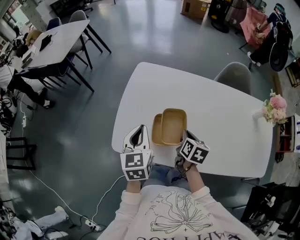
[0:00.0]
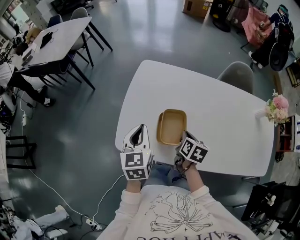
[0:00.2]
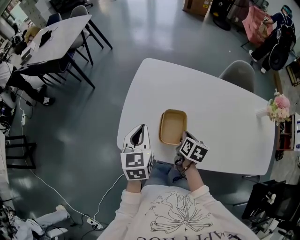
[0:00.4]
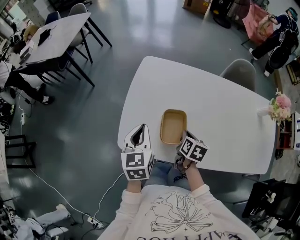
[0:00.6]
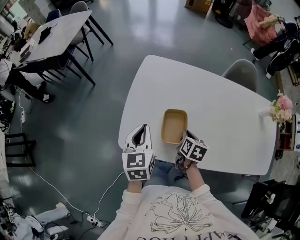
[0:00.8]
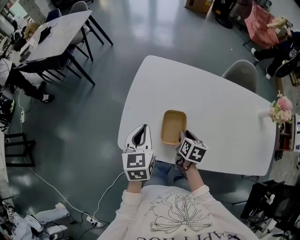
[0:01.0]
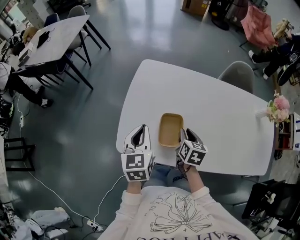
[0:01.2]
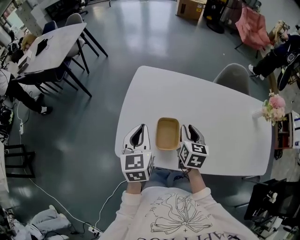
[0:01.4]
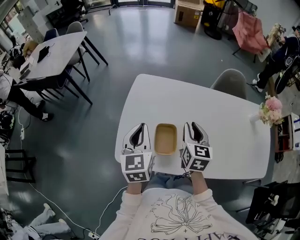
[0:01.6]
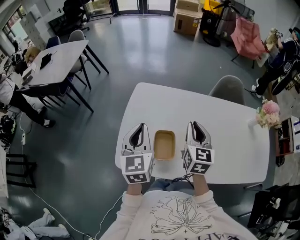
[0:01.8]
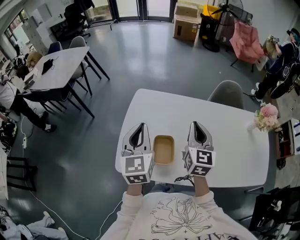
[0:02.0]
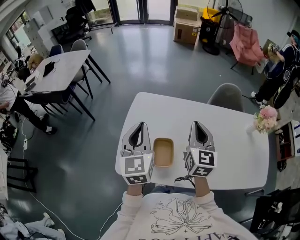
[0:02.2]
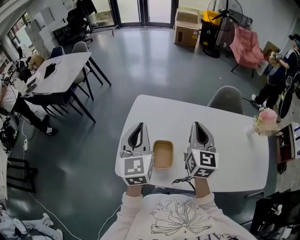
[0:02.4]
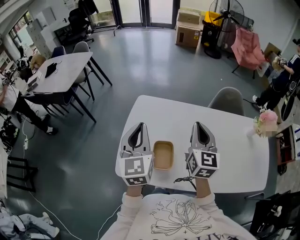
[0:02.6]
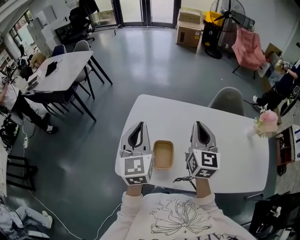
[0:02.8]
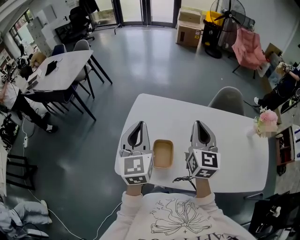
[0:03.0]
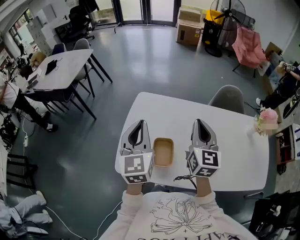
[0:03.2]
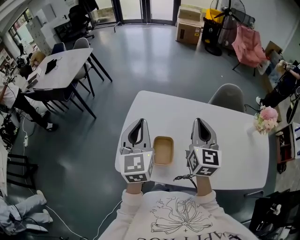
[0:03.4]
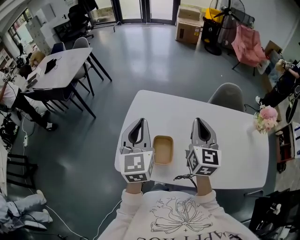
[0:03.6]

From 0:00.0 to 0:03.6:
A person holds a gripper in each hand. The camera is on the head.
From 0:00.0 to 0:01.8: The left gripper goes approximately 10 cm upward and forward. Meanwhile the right gripper shifts approximately 15 cm upward, and swivels about 40 degrees.
From 0:01.8 to 0:03.6: The grippers both shift upward by some 5 cm.

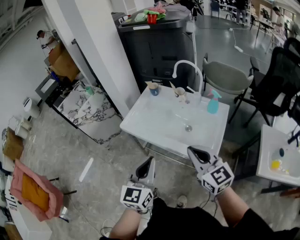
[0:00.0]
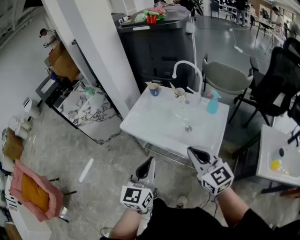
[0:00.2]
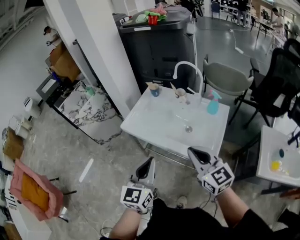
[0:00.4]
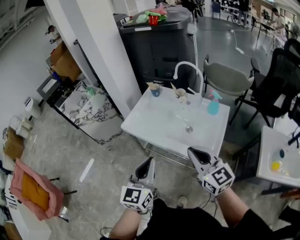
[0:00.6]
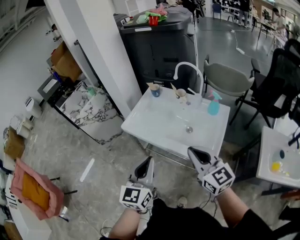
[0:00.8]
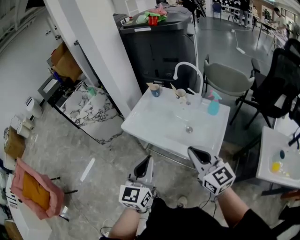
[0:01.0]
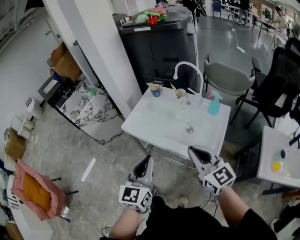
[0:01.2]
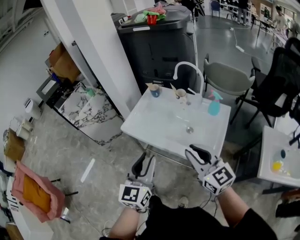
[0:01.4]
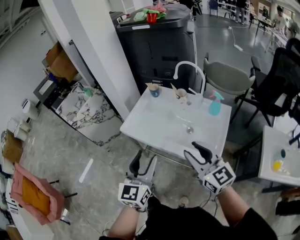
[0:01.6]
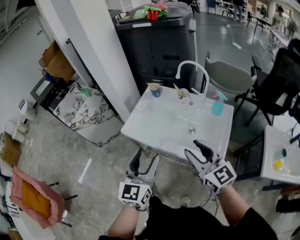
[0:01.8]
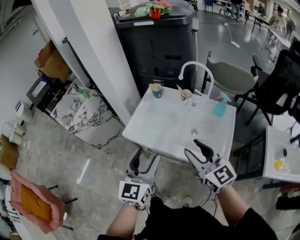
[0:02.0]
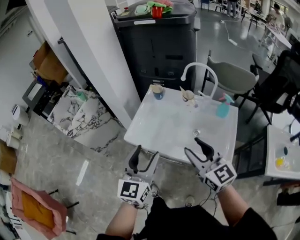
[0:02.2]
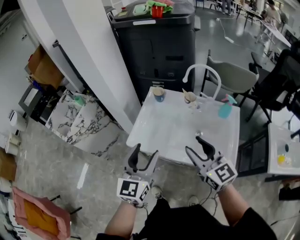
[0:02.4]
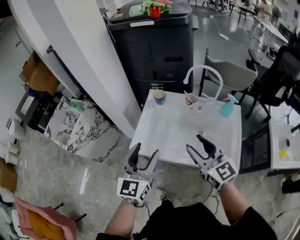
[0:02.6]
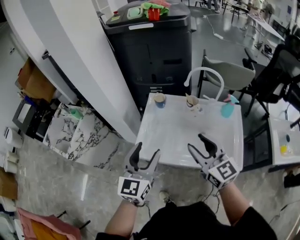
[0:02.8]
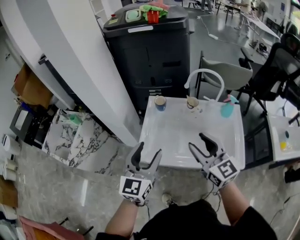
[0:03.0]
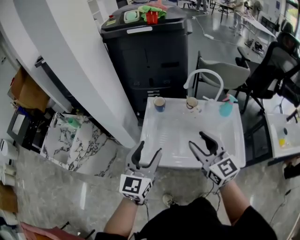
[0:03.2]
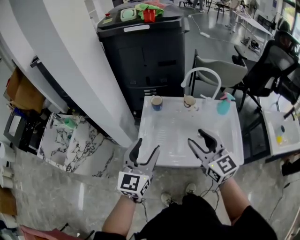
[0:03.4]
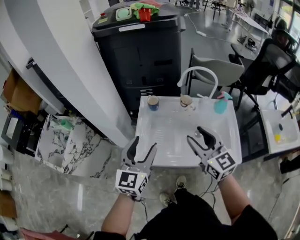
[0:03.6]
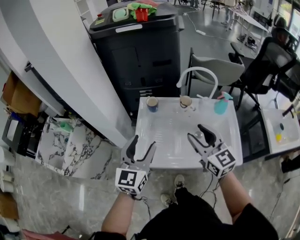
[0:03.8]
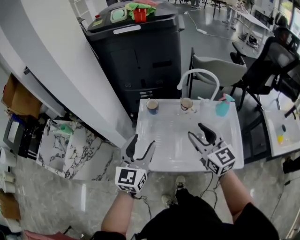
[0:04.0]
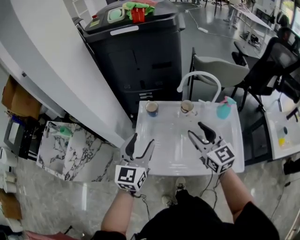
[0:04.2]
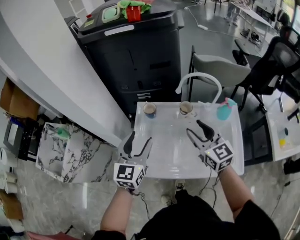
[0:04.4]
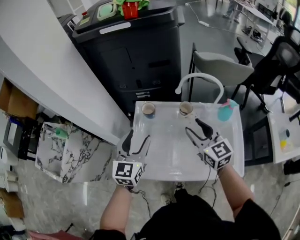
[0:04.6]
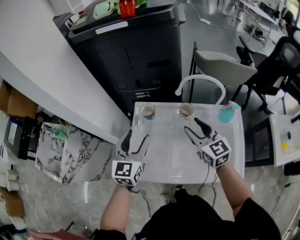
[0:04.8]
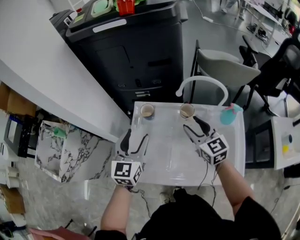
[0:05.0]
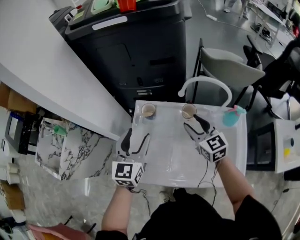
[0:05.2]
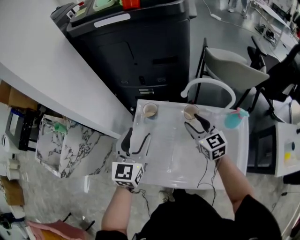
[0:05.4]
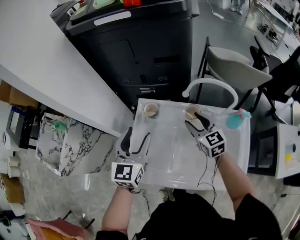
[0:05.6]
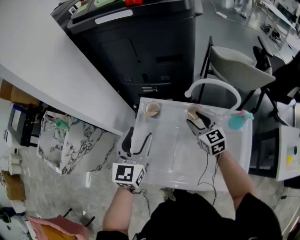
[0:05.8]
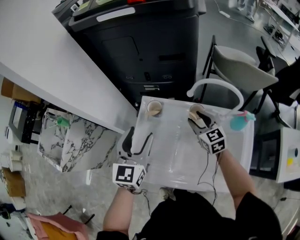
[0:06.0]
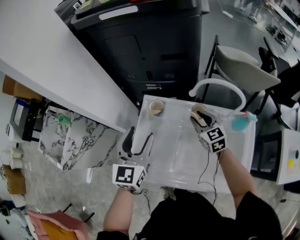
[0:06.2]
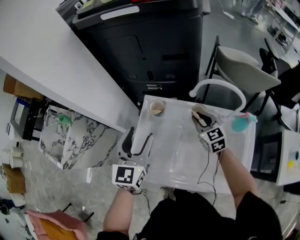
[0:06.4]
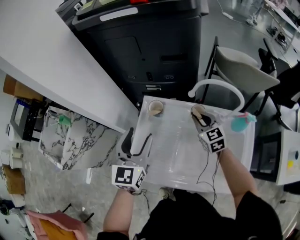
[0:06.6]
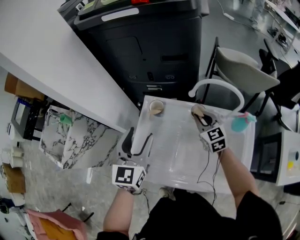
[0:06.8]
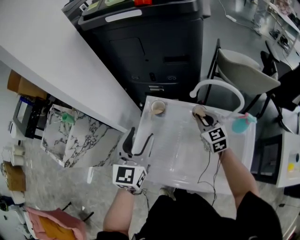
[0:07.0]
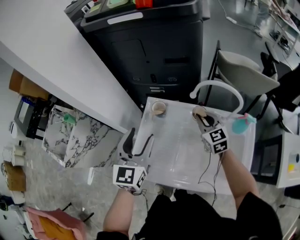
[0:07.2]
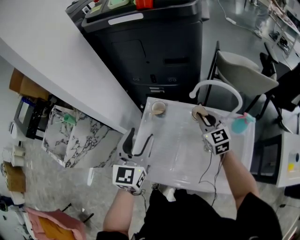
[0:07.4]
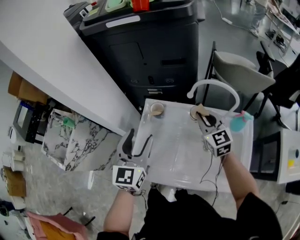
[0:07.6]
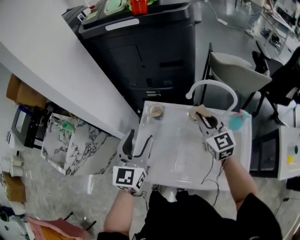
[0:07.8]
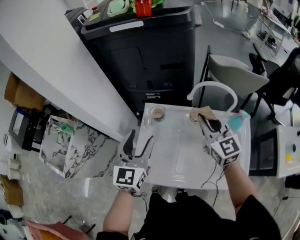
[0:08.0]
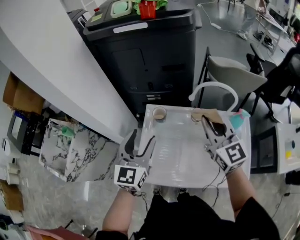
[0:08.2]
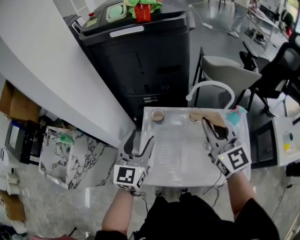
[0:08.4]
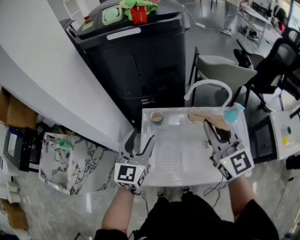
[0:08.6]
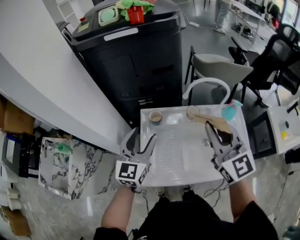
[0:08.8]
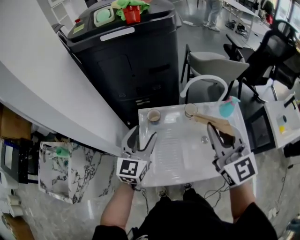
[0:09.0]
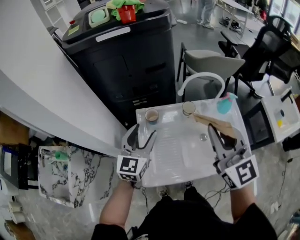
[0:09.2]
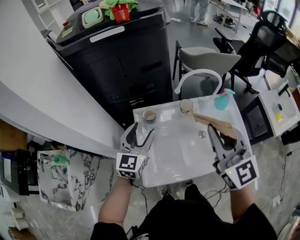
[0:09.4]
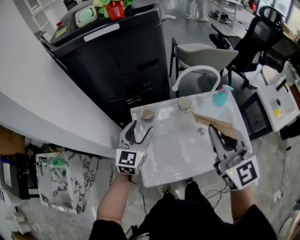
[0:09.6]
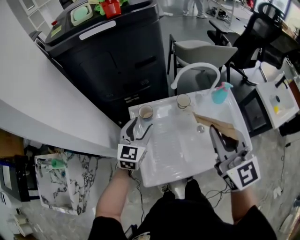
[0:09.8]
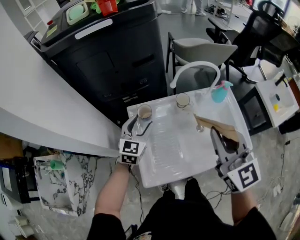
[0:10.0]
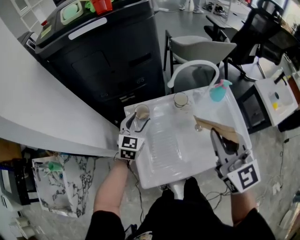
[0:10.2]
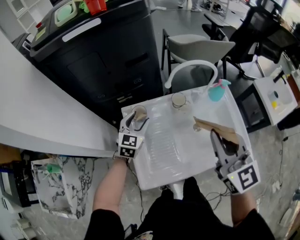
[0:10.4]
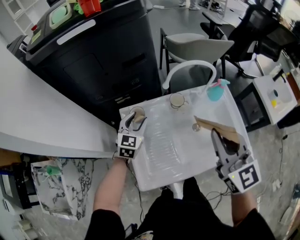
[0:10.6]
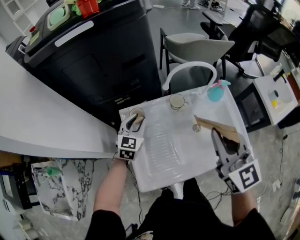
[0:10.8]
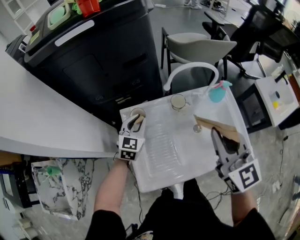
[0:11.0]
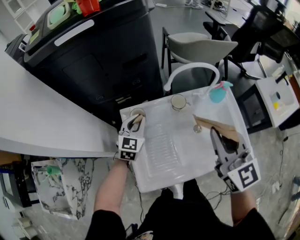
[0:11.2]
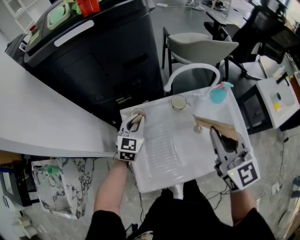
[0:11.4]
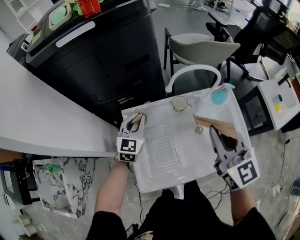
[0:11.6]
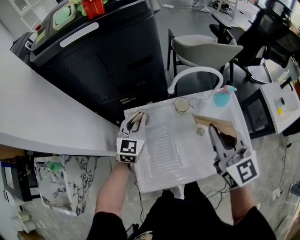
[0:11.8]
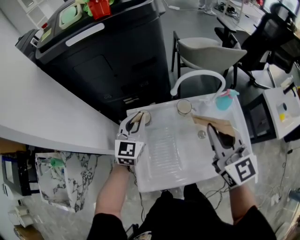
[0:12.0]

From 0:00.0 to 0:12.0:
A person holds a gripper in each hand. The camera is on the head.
From 0:00.0 to 0:01.6: The right gripper opens up. The left gripper shifts by approximately 5 cm, and opens up.
From 0:01.6 to 0:03.0: Both grippers travel together forward and to the left, about 25 cm. The right gripper turns by some 20 degrees; the left gripper changes its angle by some 20 degrees.
From 0:03.0 to 0:04.4: The grippers both shift forward by some 15 cm.
From 0:04.4 to 0:06.0: The left gripper heads forward, covering about 10 cm, while the right gripper heads forward and downward, covering approximately 20 cm.
From 0:06.0 to 0:07.6: The right gripper moves upward, some 10 cm, and closes.
From 0:07.6 to 0:09.0: The left gripper swivels approximately 20 degrees, while the right gripper is displaced upward and backward by approximately 25 cm, and changes its angle by approximately 20 degrees.
From 0:09.0 to 0:10.4: The right gripper shifts by approximately 5 cm, while the left gripper heads downward and forward, covering approximately 20 cm, and changes its angle by approximately 20 degrees.
From 0:10.4 to 0:12.0: The right gripper heads forward, covering roughly 5 cm; the left gripper heads upward, covering approximately 10 cm, and closes up.

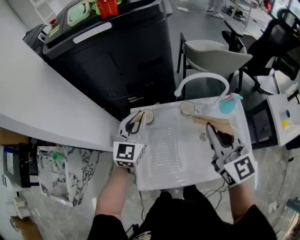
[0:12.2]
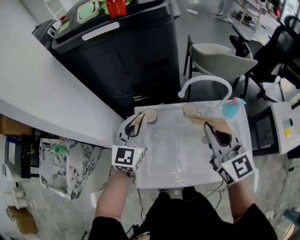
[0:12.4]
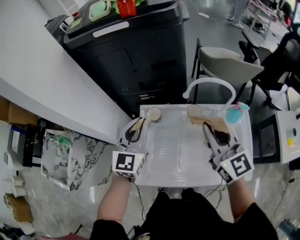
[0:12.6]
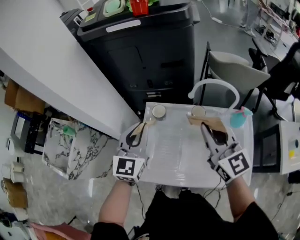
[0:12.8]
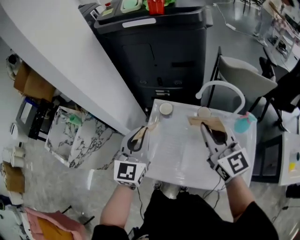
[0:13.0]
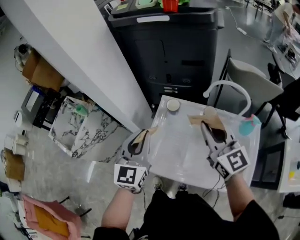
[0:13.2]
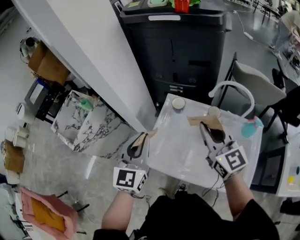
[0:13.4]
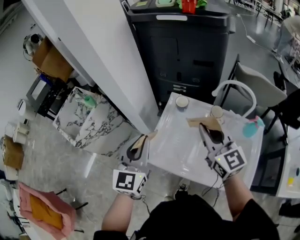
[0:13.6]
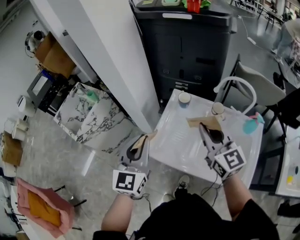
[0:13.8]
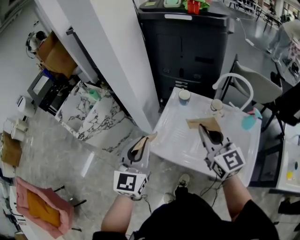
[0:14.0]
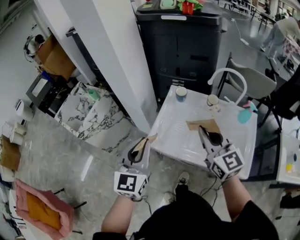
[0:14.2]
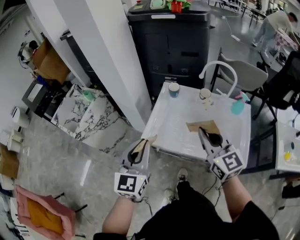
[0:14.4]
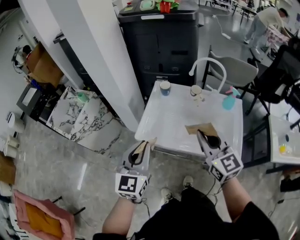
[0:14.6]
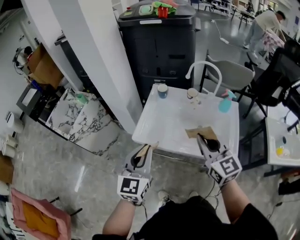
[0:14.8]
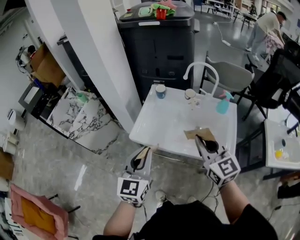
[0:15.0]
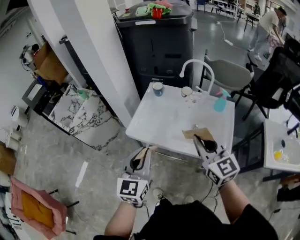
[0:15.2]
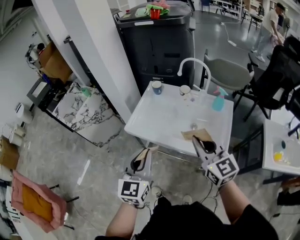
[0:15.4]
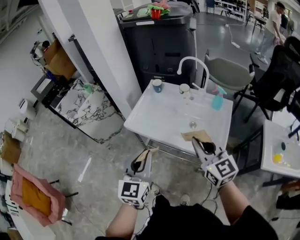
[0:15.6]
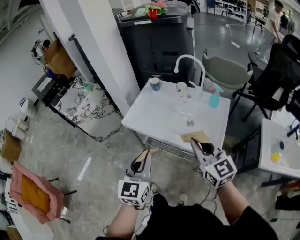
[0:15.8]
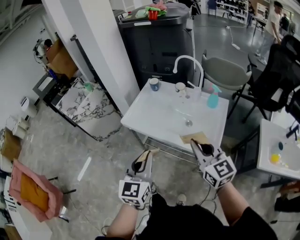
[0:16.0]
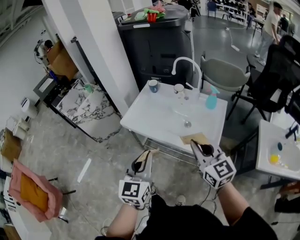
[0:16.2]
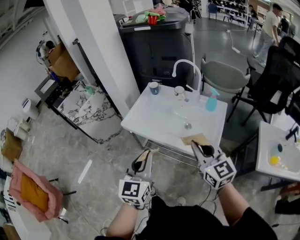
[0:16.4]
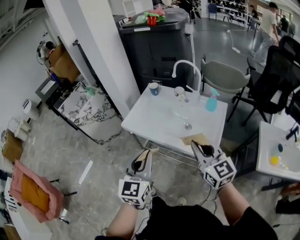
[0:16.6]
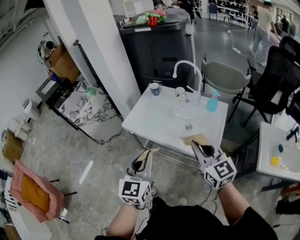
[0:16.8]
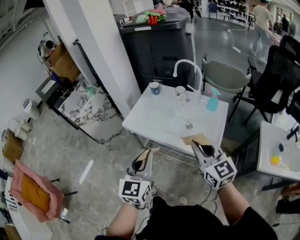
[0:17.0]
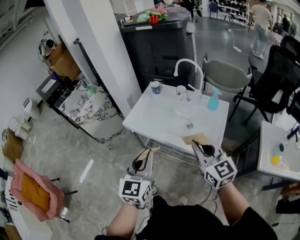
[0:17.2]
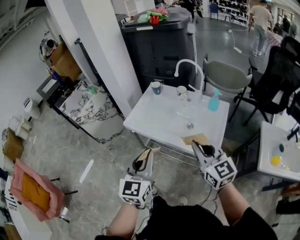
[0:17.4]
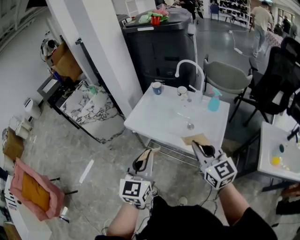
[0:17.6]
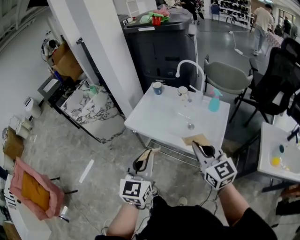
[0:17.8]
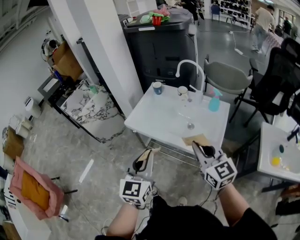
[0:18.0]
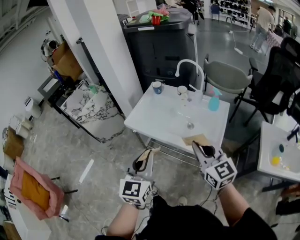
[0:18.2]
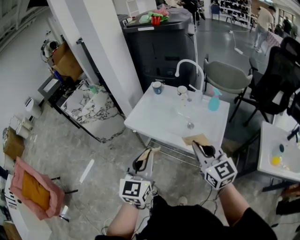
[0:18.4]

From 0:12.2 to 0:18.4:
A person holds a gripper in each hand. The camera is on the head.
From 0:12.2 to 0:13.8: The left gripper ends up about 30 cm from where it was, and turns by roughly 30 degrees. Meanwhile the right gripper changes place by roughly 15 cm, and turns by roughly 30 degrees.
From 0:13.8 to 0:15.4: Both grippers travel together backward and to the right, approximately 30 cm.
From 0:15.4 to 0:16.8: The two grippers go some 10 cm backward and to the right.
From 0:16.8 to 0:18.4: The grippers stay close to where they were, moving slightly.

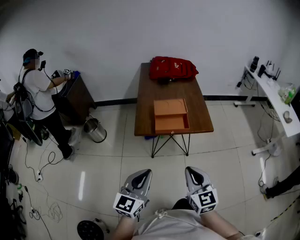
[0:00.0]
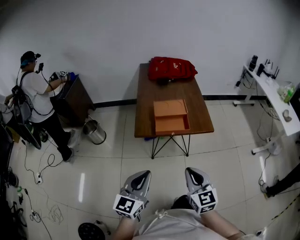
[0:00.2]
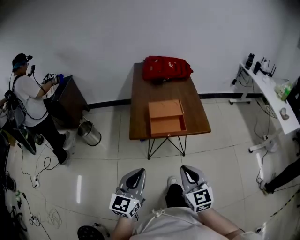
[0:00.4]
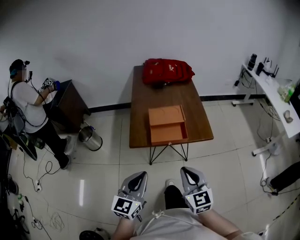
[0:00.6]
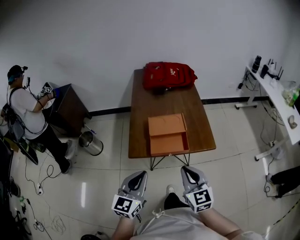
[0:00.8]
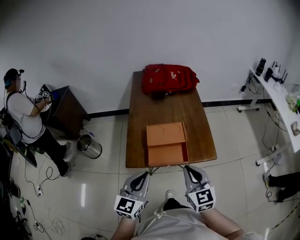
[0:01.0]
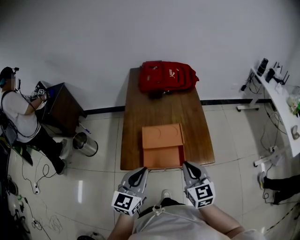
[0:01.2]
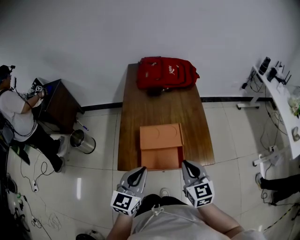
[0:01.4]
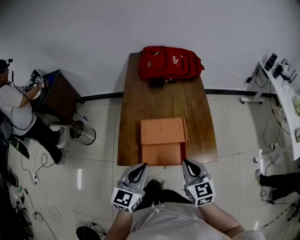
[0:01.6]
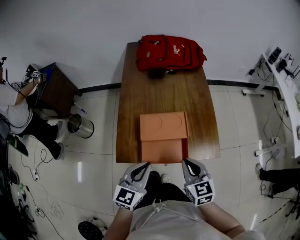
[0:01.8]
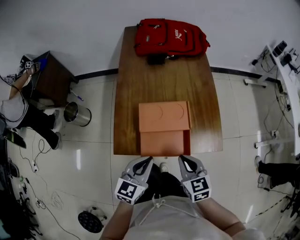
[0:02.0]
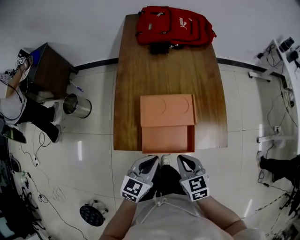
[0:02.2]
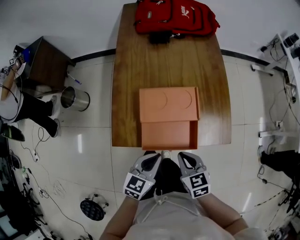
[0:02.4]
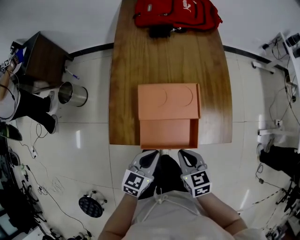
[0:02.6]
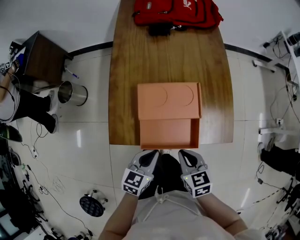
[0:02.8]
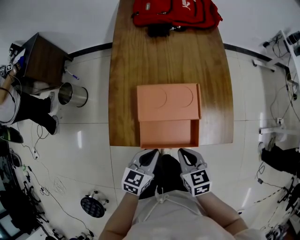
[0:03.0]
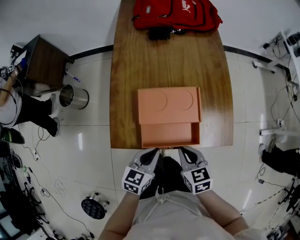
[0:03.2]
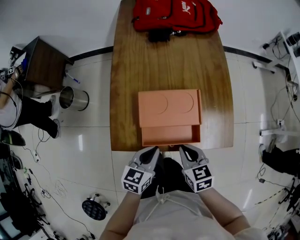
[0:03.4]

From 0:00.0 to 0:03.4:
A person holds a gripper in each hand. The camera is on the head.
From 0:00.0 to 0:01.6: Both grippers travel together forward, approximately 30 cm.
From 0:01.6 to 0:03.4: The two grippers go approximately 15 cm downward. The right gripper changes its angle by approximately 20 degrees, while the left gripper turns by some 30 degrees.
